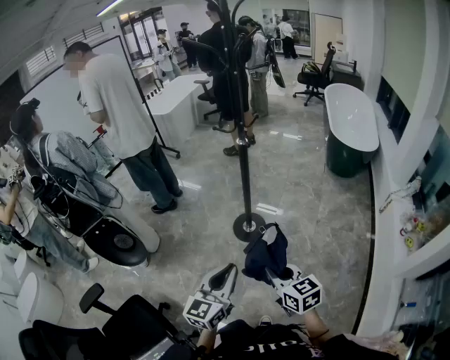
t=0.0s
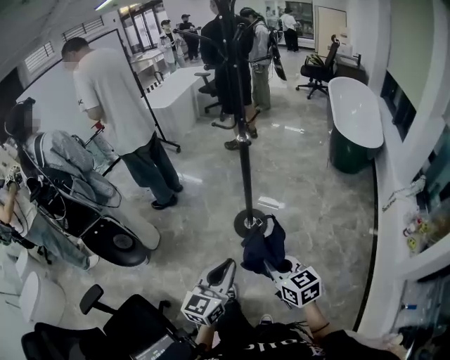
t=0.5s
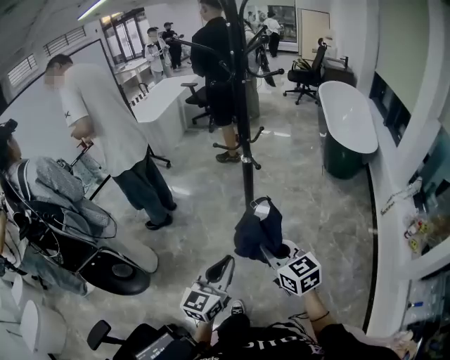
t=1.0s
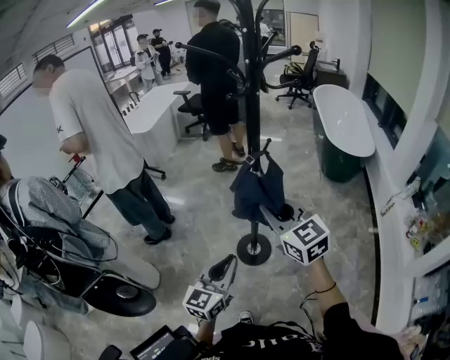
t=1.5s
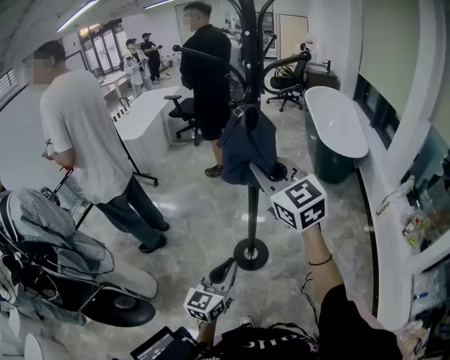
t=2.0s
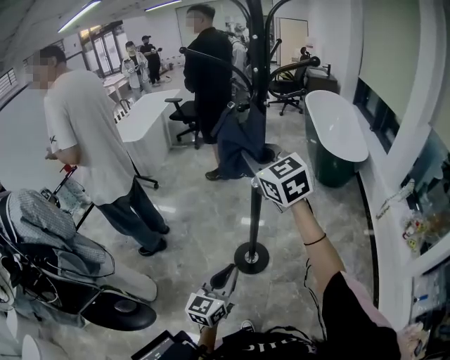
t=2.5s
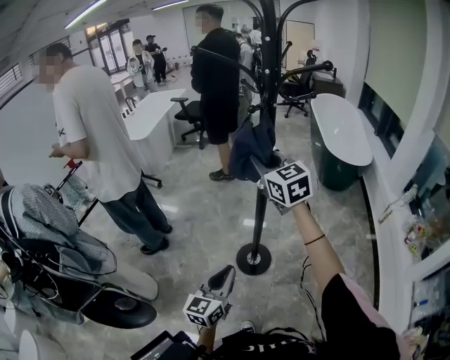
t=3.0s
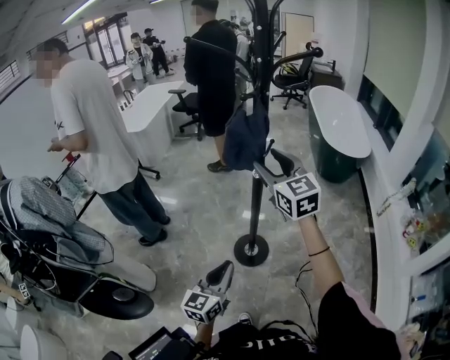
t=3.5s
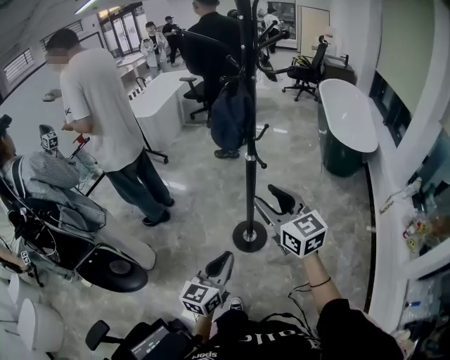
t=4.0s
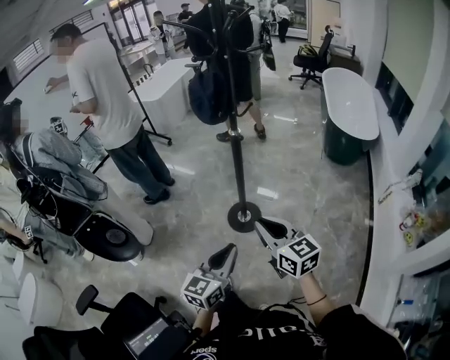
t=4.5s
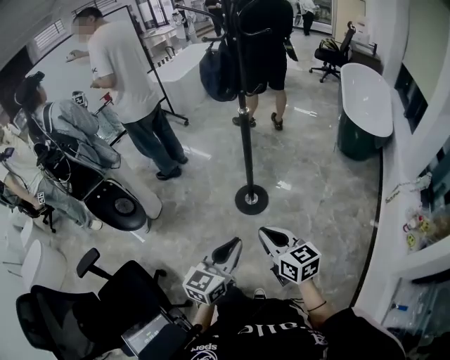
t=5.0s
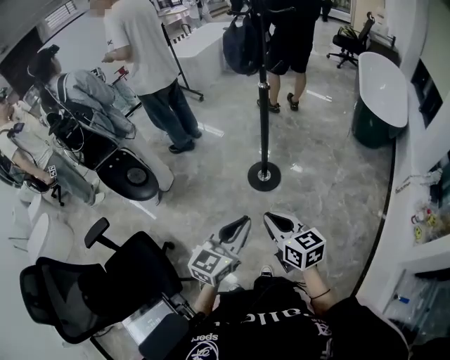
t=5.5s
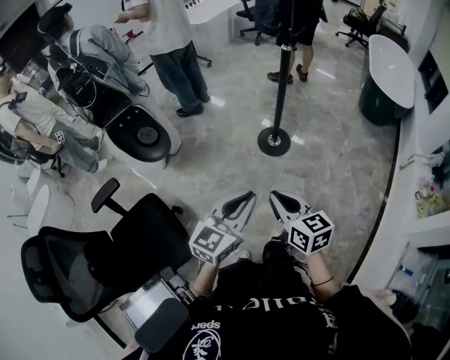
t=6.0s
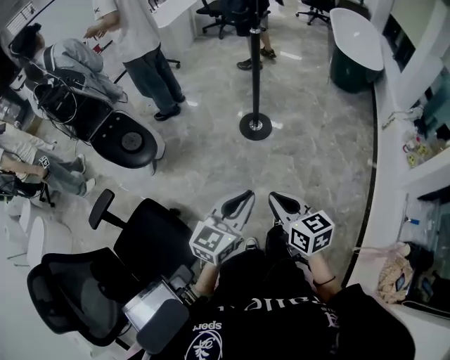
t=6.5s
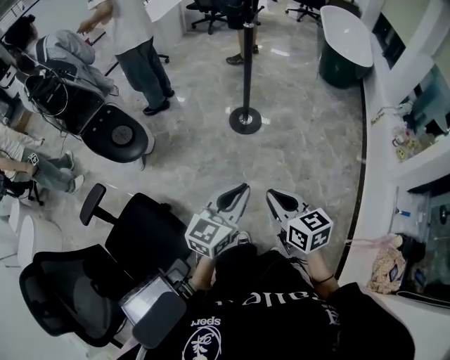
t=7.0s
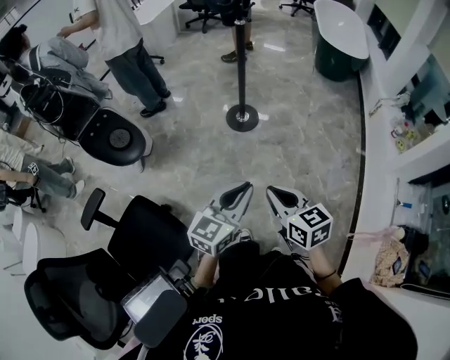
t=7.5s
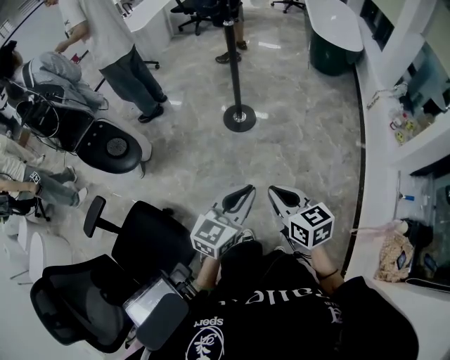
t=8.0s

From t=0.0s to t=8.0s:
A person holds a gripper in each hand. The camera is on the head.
From t=0.0s to t=2.0s: The right gripper shifts roughly 50 cm forward and upward, and changes its angle by approximately 40 degrees, while the left gripper travels forward and to the left by approximately 35 cm.
From t=2.0s to t=4.0s: The left gripper moves backward, about 10 cm. The right gripper heads downward, backward and to the right, covering roughly 20 cm, and opens.
From t=4.0s to t=6.0s: Both grippers travel together backward, some 40 cm. The right gripper turns by about 30 degrees, and closes up.
From t=6.0s to t=8.0s: The two grippers go some 10 cm backward.

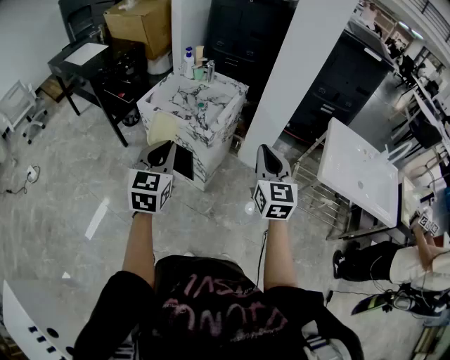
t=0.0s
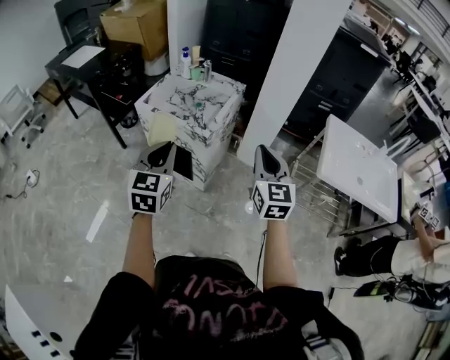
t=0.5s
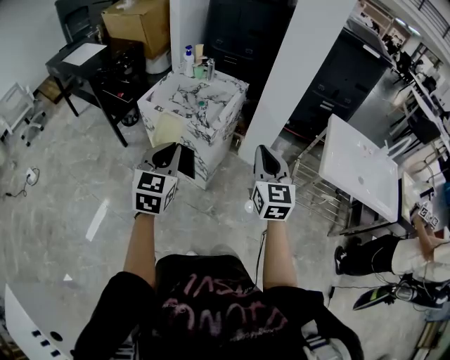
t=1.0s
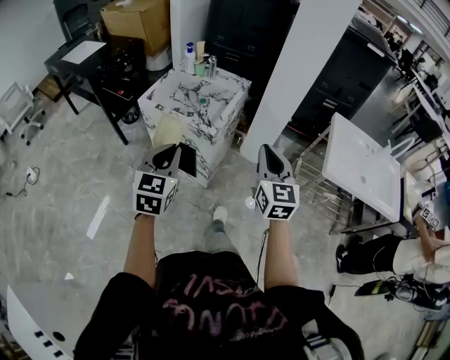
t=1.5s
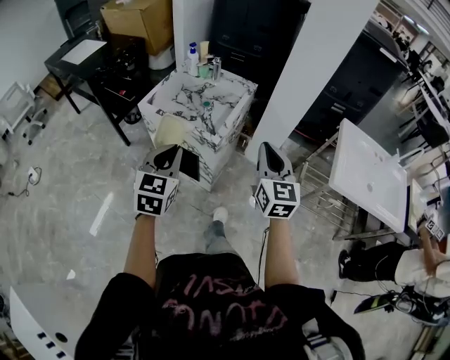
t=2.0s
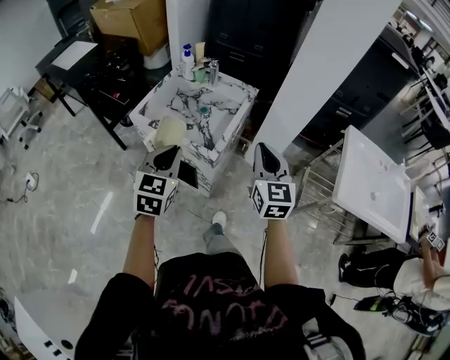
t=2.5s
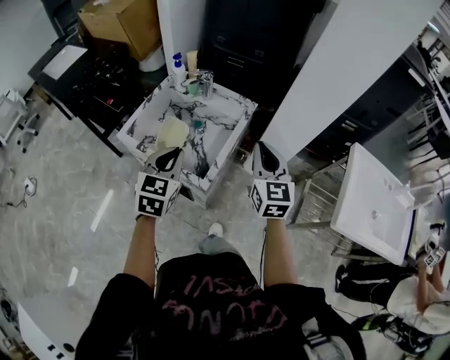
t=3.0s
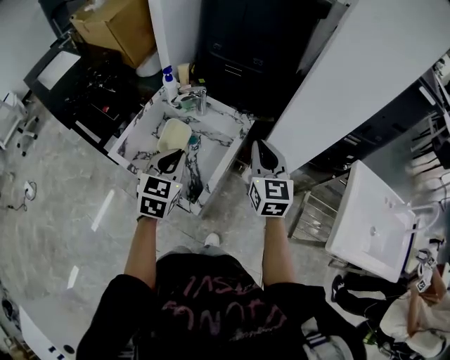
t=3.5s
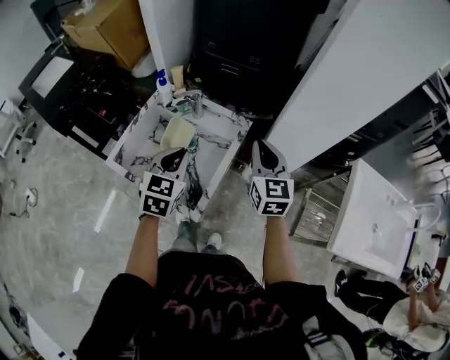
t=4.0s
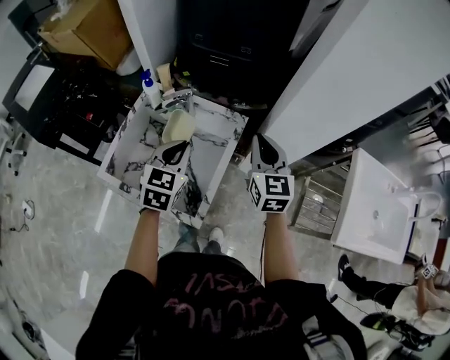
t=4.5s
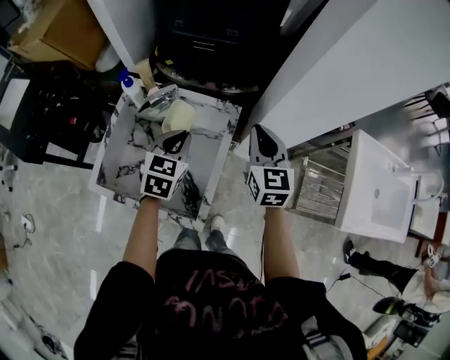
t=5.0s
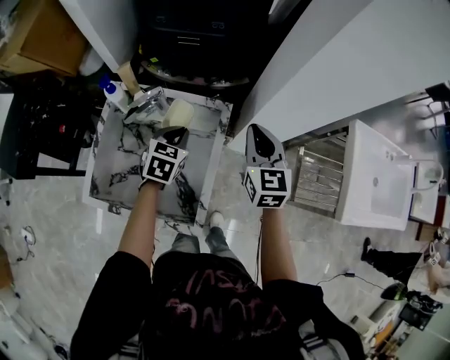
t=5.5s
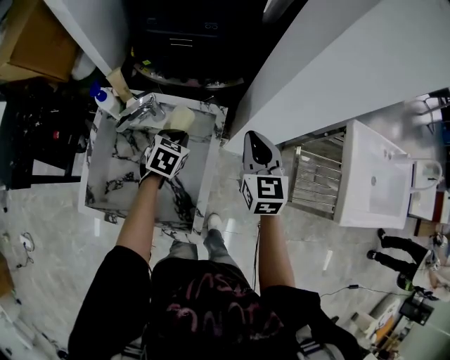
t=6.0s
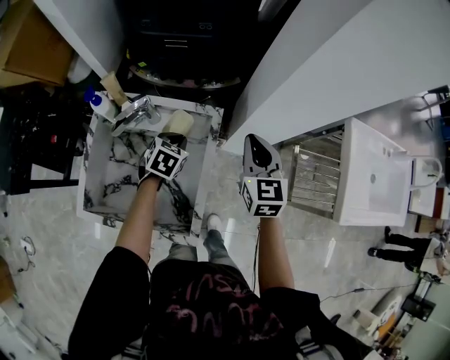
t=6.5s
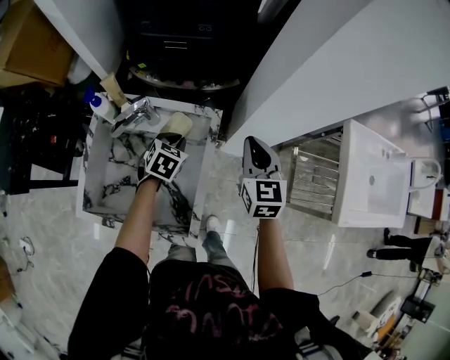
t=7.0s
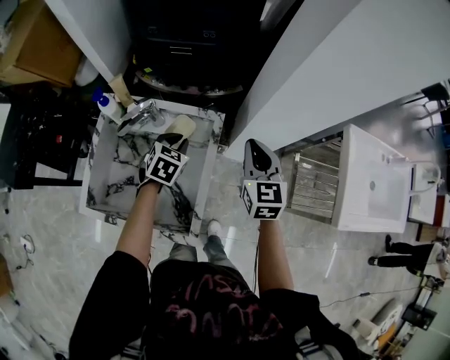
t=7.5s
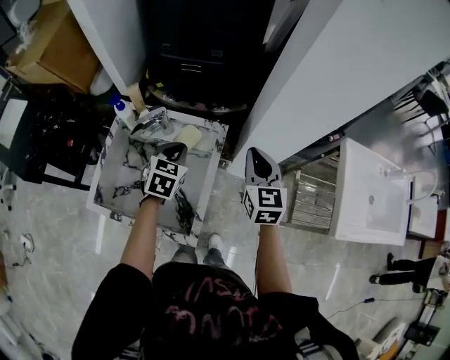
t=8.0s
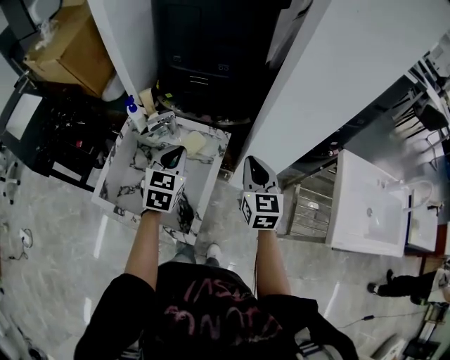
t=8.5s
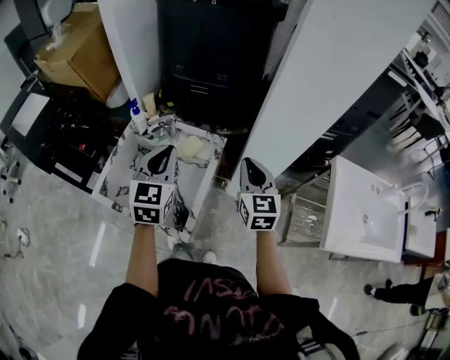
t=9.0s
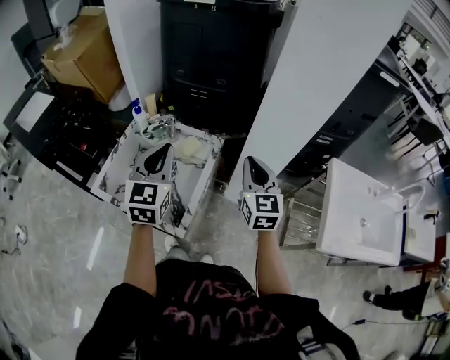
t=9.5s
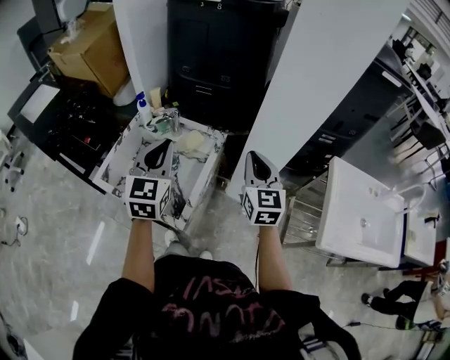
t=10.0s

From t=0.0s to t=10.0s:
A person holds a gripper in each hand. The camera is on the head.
From t=0.0s to t=2.0s: Both grippers travel together forward, some 5 cm.
From t=2.0s to t=4.0s: Both grippers move forward, some 35 cm.
From t=4.0s to t=6.0s: The left gripper heads downward and forward, covering roughly 25 cm, and rotates roughly 30 degrees. The right gripper heads downward and forward, covering some 10 cm.
From t=6.0s to t=8.0s: The right gripper moves about 5 cm. The left gripper goes approximately 10 cm upward.
From t=8.0s to t=10.0s: The left gripper heads upward and backward, covering about 25 cm, and points its fingers some 30 degrees further upward, while the right gripper travels backward and upward by roughly 10 cm.

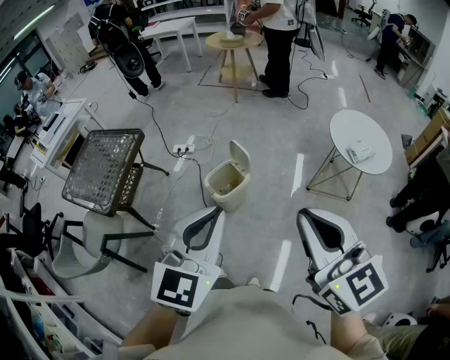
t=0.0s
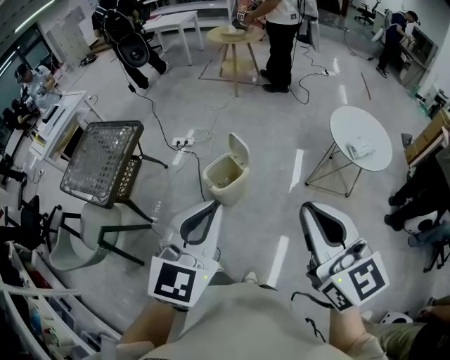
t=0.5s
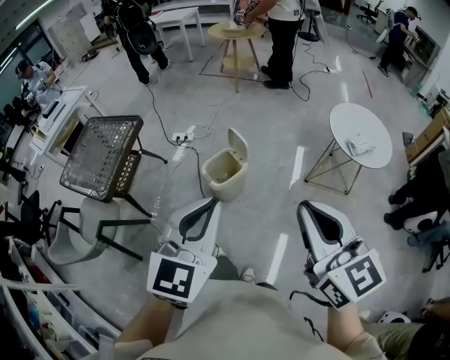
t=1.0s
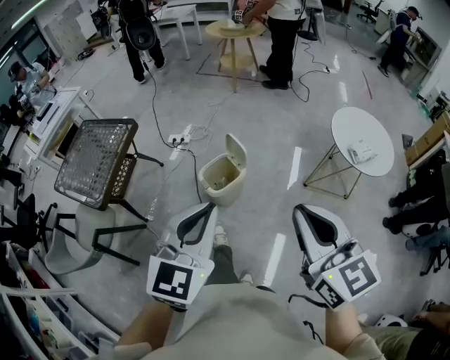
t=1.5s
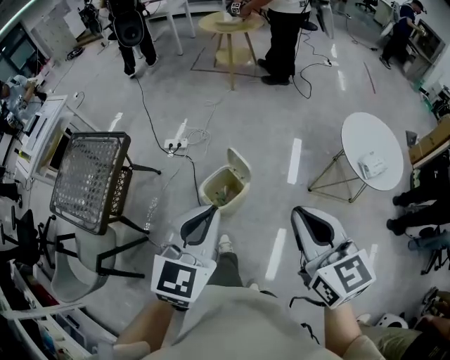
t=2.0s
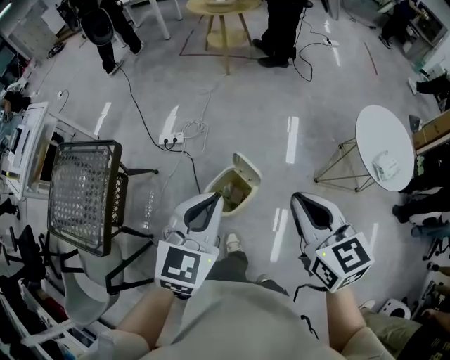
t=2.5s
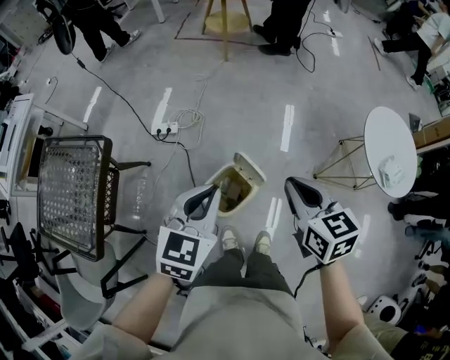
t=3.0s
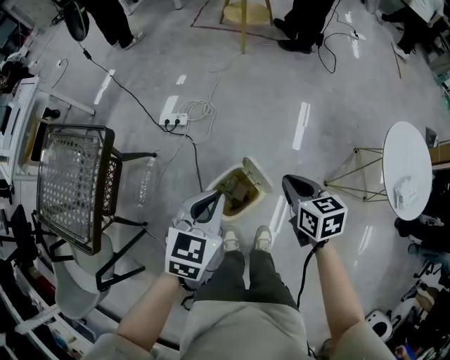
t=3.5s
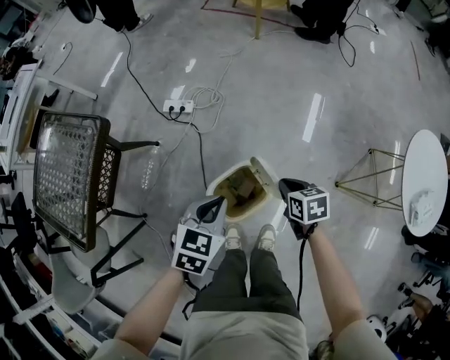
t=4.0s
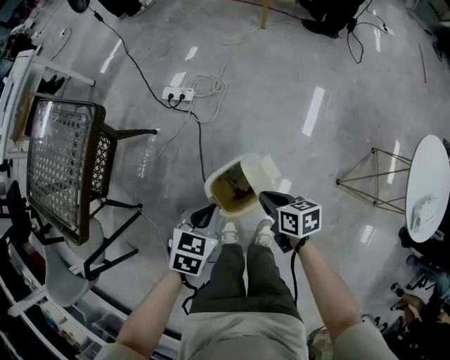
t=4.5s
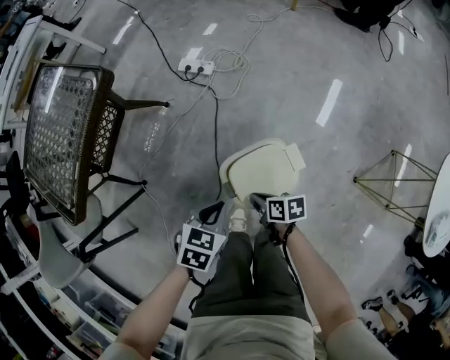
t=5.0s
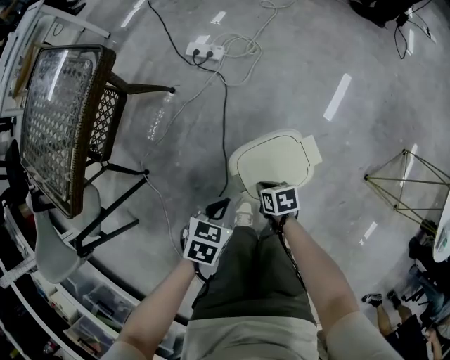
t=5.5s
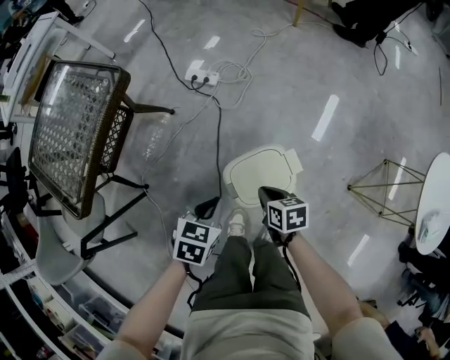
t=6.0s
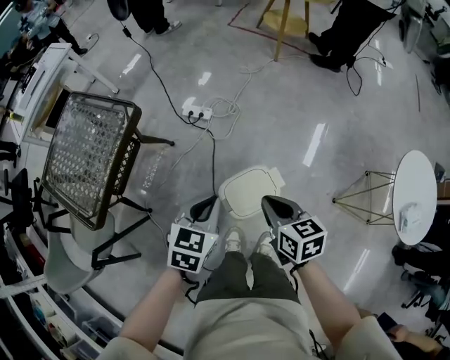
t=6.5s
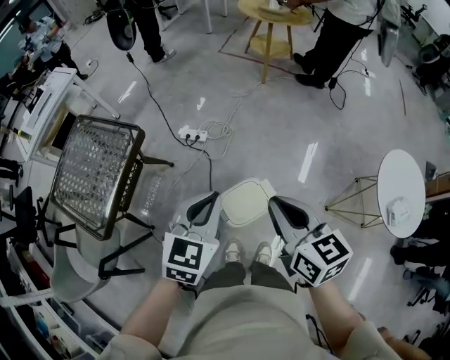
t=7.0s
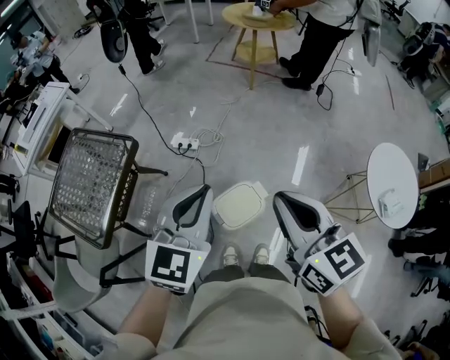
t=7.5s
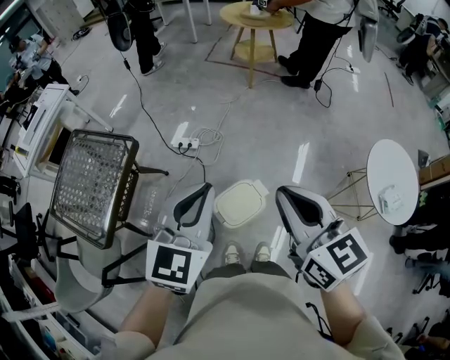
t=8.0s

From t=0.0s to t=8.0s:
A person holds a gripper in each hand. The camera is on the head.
From t=0.0s to t=2.0s: The right gripper moves forward and downward, some 20 cm. Meanwhile the left gripper travels forward by roughly 20 cm.
From t=2.0s to t=4.0s: Both grippers move downward and forward, roughly 50 cm. The right gripper tilts its fingers roughly 40 degrees downward. Meanwhile the left gripper rotates about 30 degrees.
From t=4.0s to t=6.0s: The right gripper is displaced to the left by about 15 cm, and reaches about 25 cm downward, then returns, while the left gripper is displaced to the left, downward and backward by approximately 15 cm.
From t=6.0s to t=8.0s: Both grippers move upward, about 50 cm. The left gripper angles its fingers upward, by some 40 degrees. Meanwhile the right gripper tilts its fingers about 40 degrees upward.
